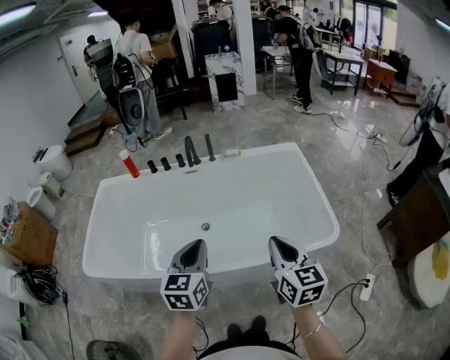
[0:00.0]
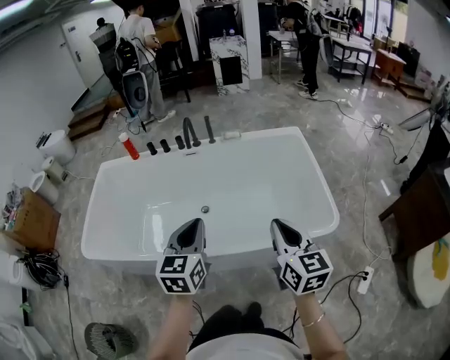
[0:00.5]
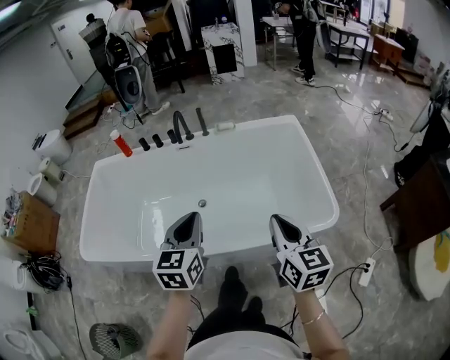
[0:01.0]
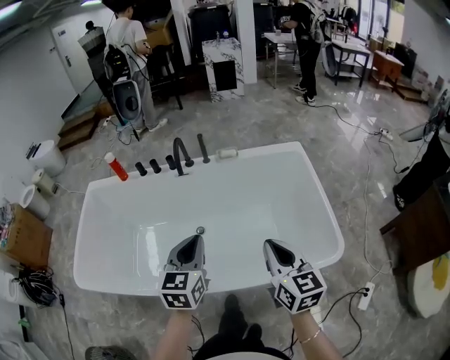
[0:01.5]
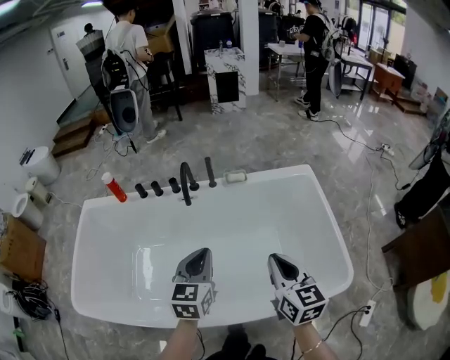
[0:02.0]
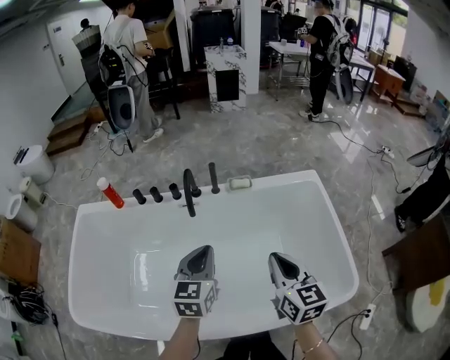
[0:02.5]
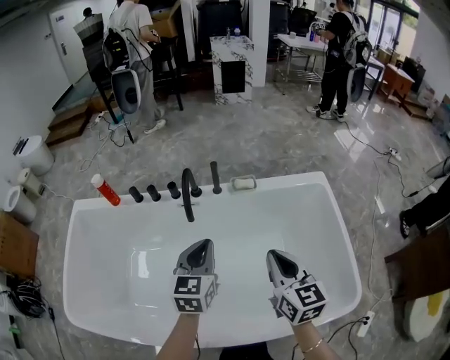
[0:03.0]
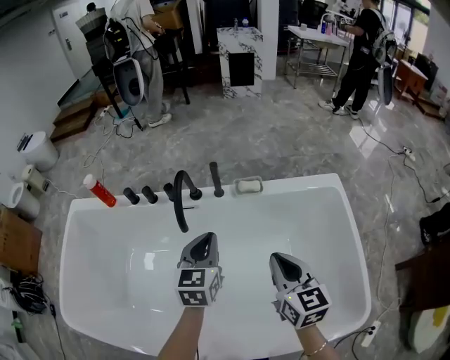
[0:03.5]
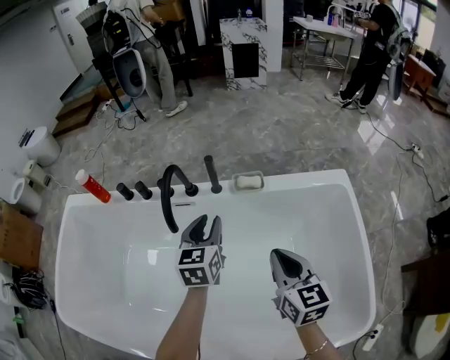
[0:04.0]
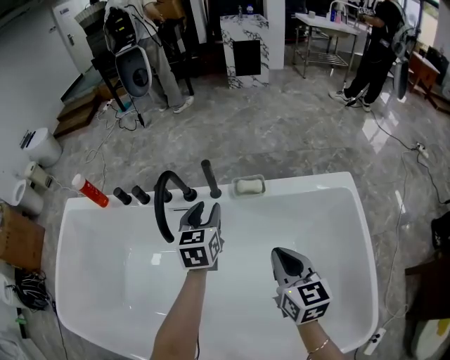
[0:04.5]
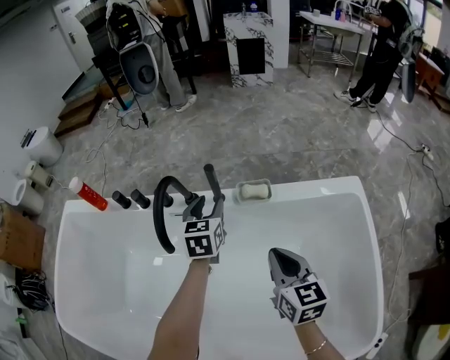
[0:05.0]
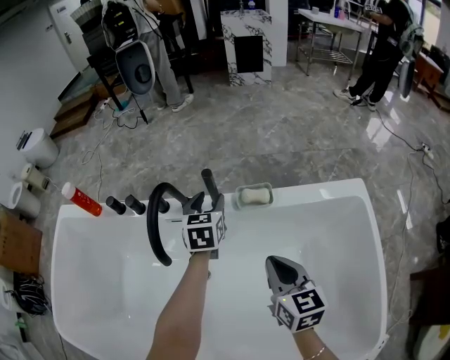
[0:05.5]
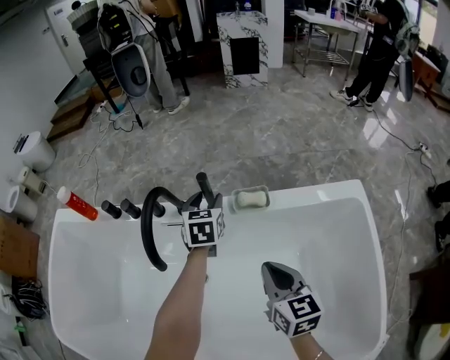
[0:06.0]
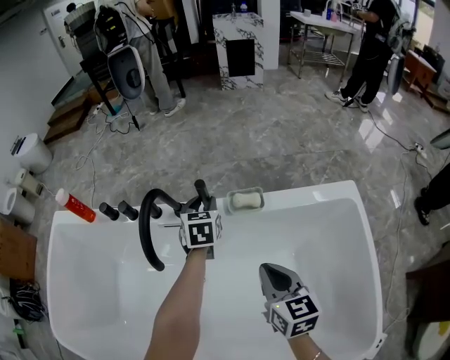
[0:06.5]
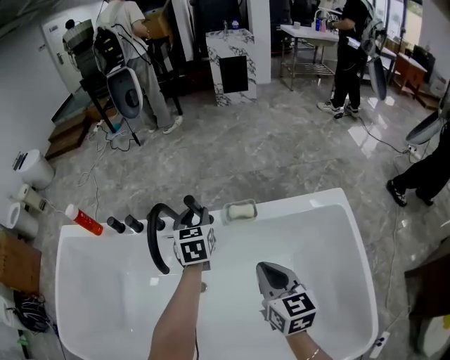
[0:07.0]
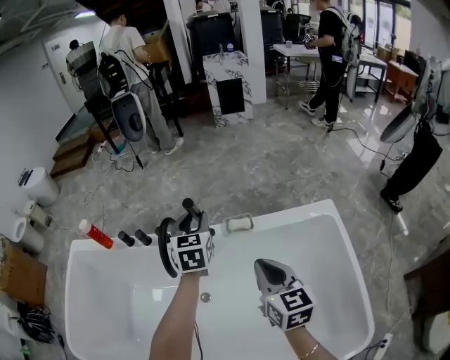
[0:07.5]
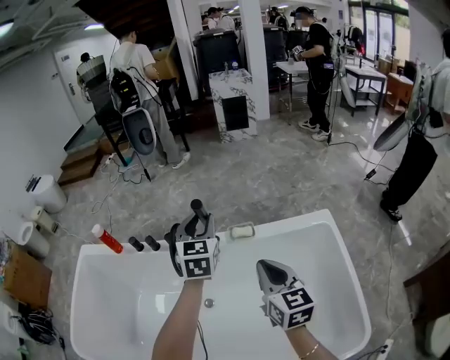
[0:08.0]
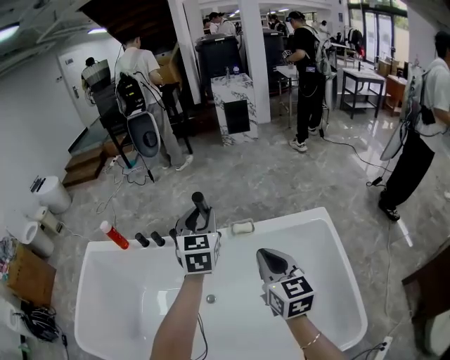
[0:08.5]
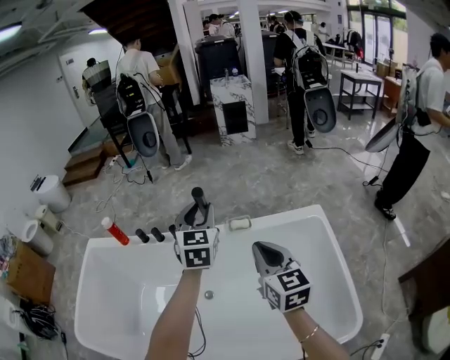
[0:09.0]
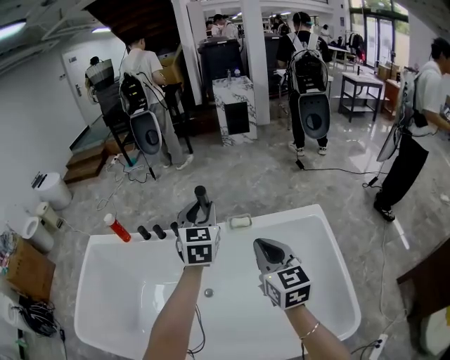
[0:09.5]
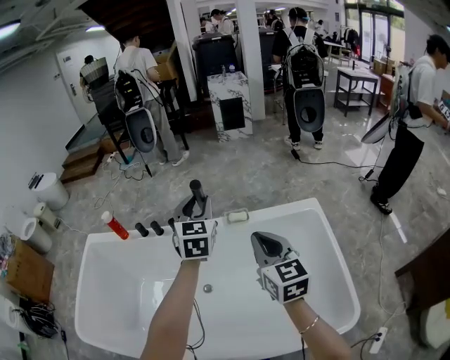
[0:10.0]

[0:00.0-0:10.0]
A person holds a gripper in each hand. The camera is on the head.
0:00.0 to 0:02.0: The two grippers go roughly 35 cm forward.
0:02.0 to 0:04.0: The grippers both shift forward and downward by roughly 40 cm. The left gripper opens.
0:04.0 to 0:06.0: The left gripper heads forward and downward, covering roughly 25 cm, and opens its fingers, while the right gripper shifts roughly 15 cm forward and downward.
0:06.0 to 0:08.0: The grippers both shift upward and backward by about 35 cm.
0:08.0 to 0:10.0: The left gripper moves backward and upward, about 15 cm. The right gripper is displaced upward and backward by roughly 15 cm.

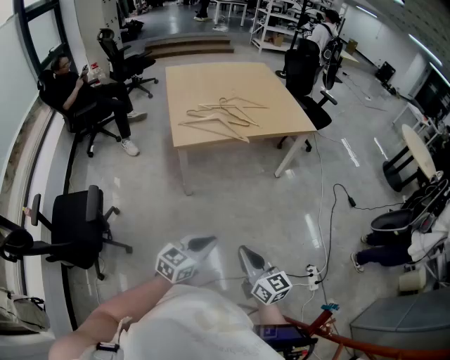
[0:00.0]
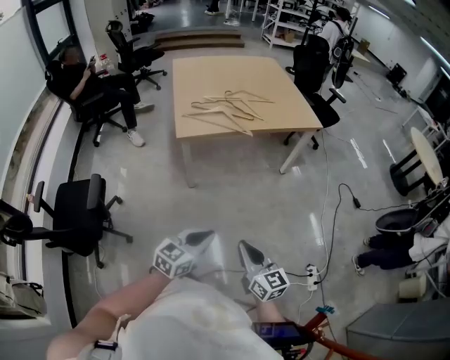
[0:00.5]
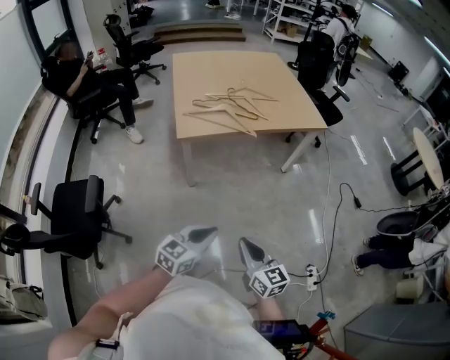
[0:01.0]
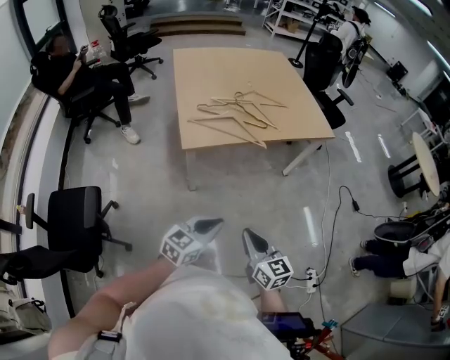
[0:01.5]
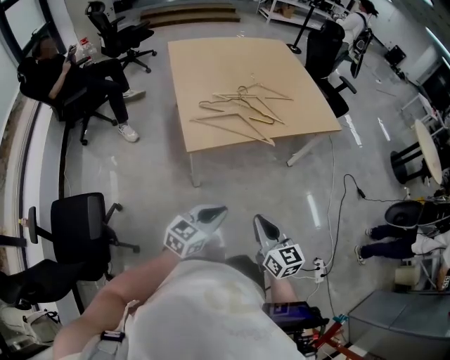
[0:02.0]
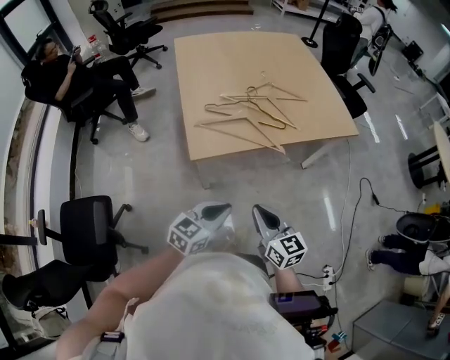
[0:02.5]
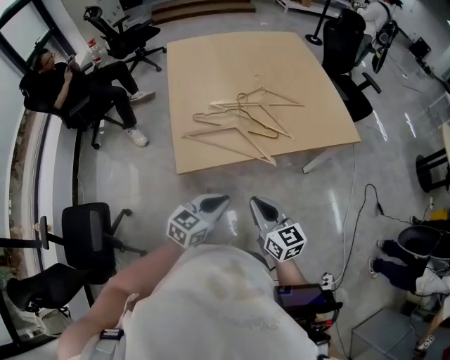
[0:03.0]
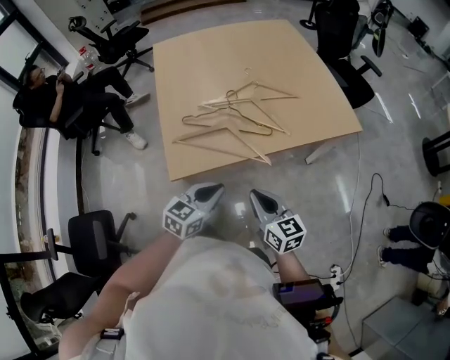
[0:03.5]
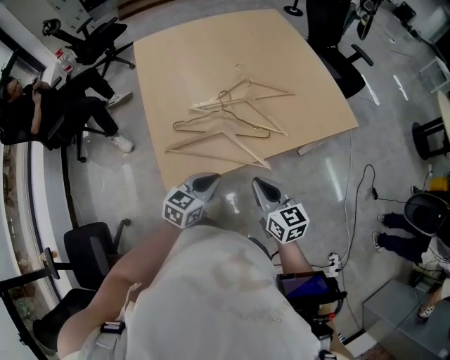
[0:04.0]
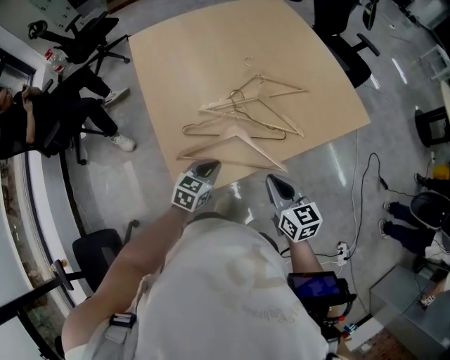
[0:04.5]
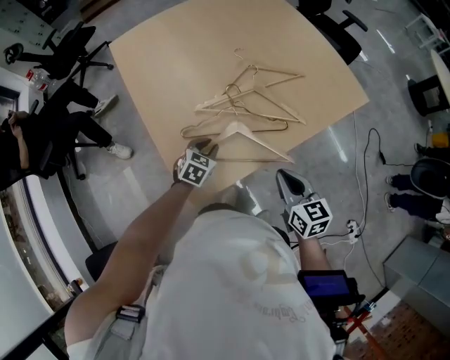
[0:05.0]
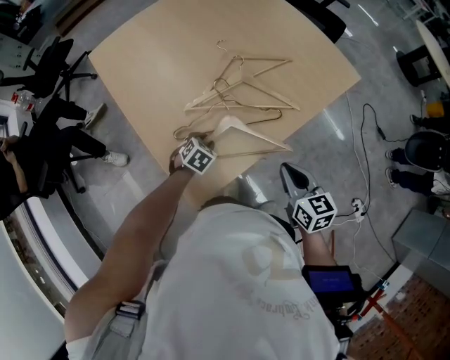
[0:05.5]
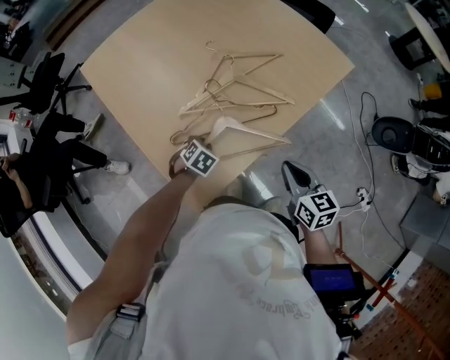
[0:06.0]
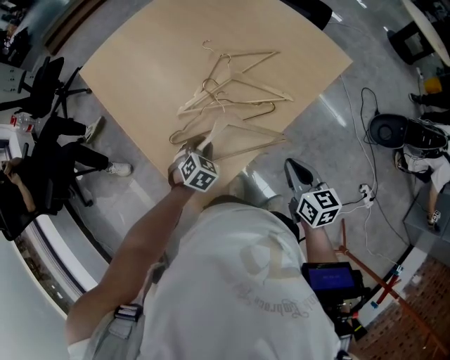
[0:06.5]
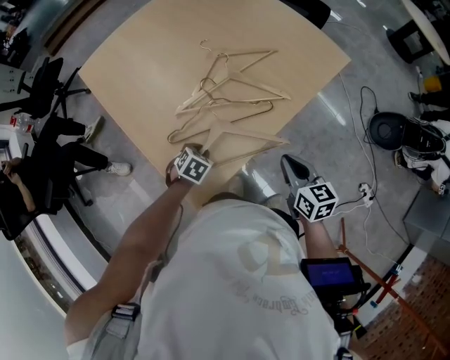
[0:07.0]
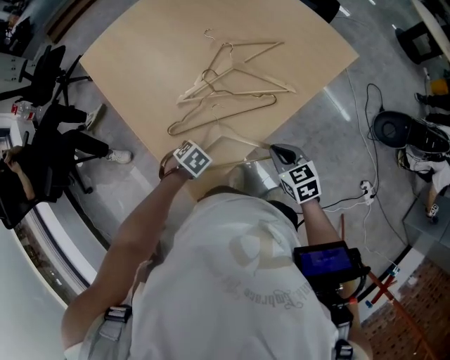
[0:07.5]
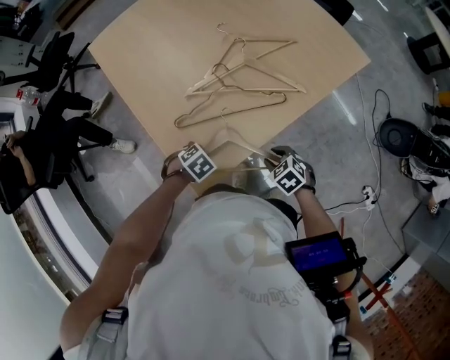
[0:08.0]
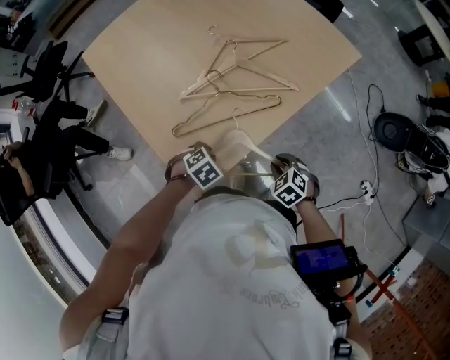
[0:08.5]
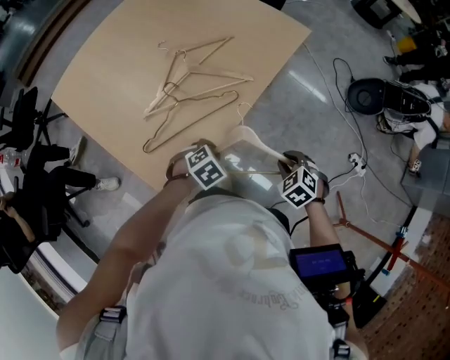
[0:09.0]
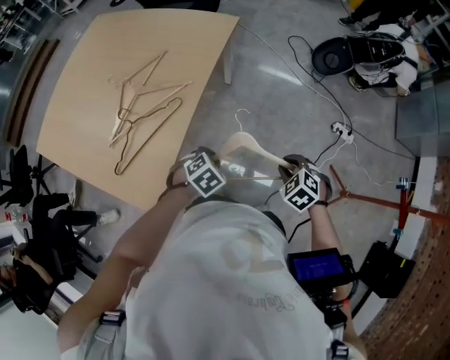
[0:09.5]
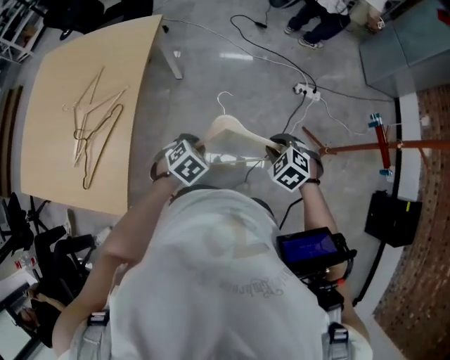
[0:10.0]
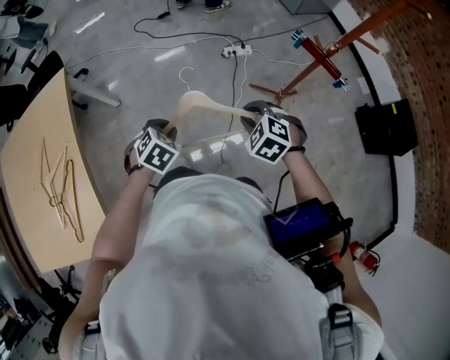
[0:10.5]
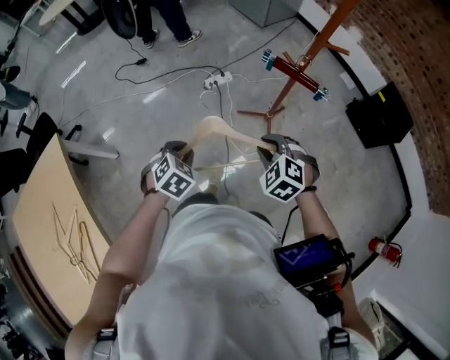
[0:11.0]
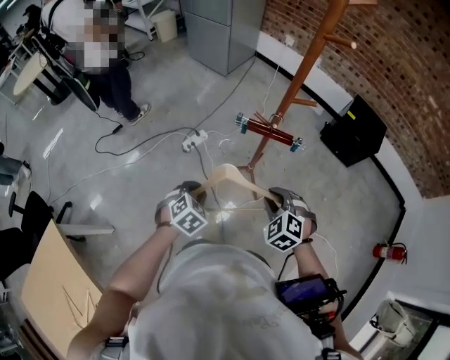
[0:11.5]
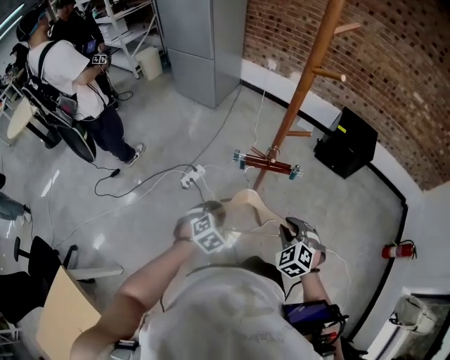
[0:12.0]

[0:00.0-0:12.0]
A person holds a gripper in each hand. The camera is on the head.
0:00.0 to 0:02.0: The grippers both shift forward and to the left by some 25 cm.
0:02.0 to 0:04.0: Both grippers move forward, about 35 cm.
0:04.0 to 0:06.0: The left gripper shifts about 25 cm downward, forward and to the left, and angles its fingers downward, by approximately 40 degrees, while the right gripper shifts by roughly 5 cm, and turns by roughly 30 degrees.
0:06.0 to 0:08.0: The left gripper moves roughly 10 cm, while the right gripper travels downward by about 15 cm, angles its fingers downward, by some 40 degrees, and opens.
0:08.0 to 0:10.0: The pair of grippers is taken roughly 40 cm. The left gripper twists roughly 50 degrees clockwise, seen from behind, while the right gripper turns by approximately 40 degrees.
0:10.0 to 0:12.0: The right gripper changes place by some 40 cm, and changes its angle by approximately 70 degrees, while the left gripper shifts by some 50 cm, and twists roughly 60 degrees clockwise, seen from behind.

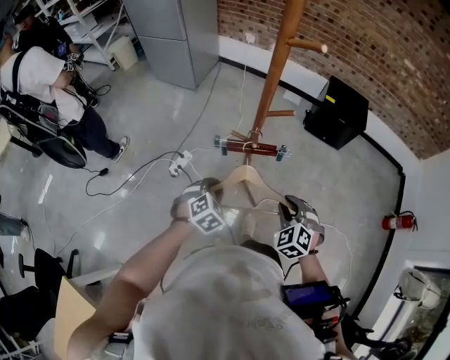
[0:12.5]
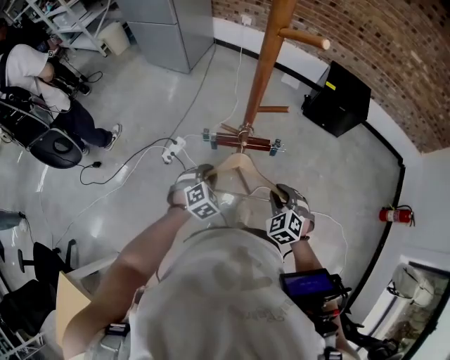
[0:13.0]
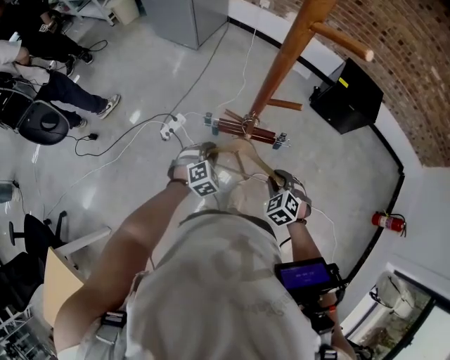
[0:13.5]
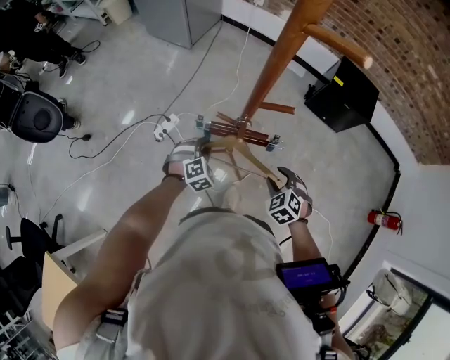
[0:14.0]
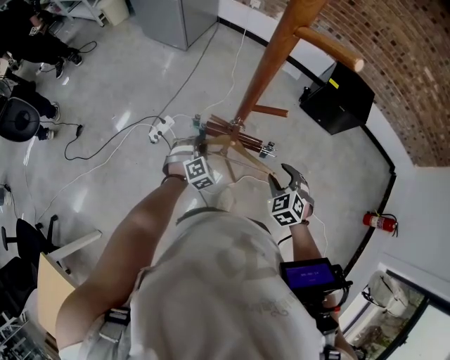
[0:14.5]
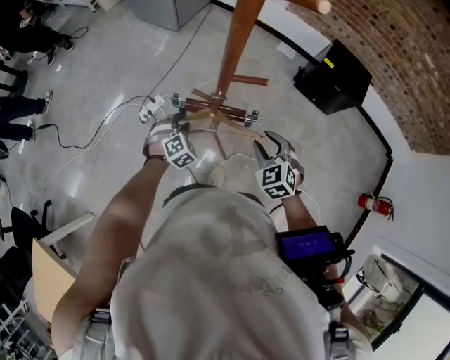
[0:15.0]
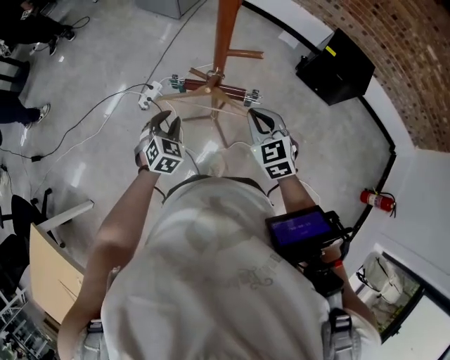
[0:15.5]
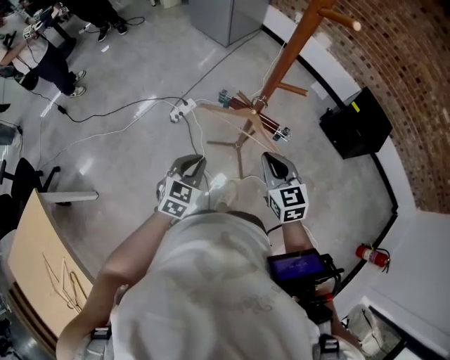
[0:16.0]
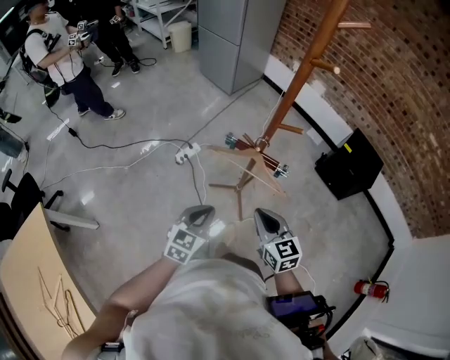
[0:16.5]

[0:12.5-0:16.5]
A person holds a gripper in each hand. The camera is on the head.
0:12.5 to 0:14.5: The right gripper heads forward, downward and to the right, covering roughly 15 cm, and opens its fingers. The left gripper is displaced forward and downward by roughly 20 cm.
0:14.5 to 0:16.5: The right gripper is displaced backward, to the left and upward by roughly 20 cm, changes its angle by roughly 50 degrees, and closes up. The left gripper heads backward and upward, covering roughly 30 cm, rolls counterclockwise, seen from behind, by roughly 60 degrees, and closes up.
